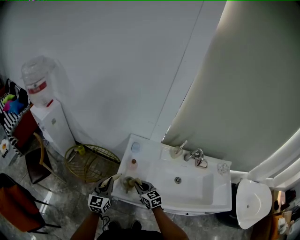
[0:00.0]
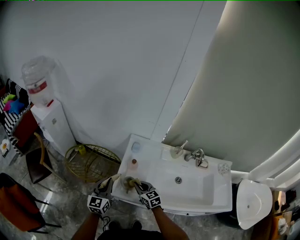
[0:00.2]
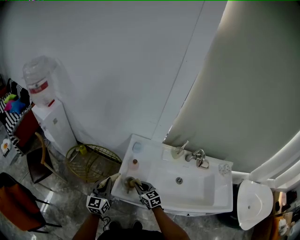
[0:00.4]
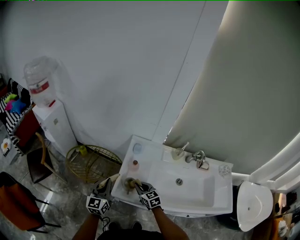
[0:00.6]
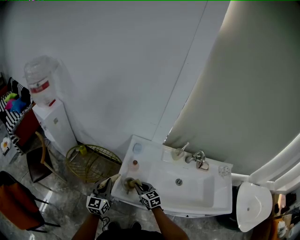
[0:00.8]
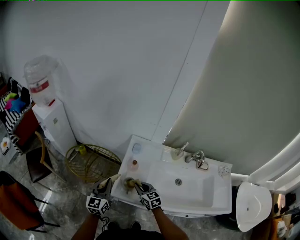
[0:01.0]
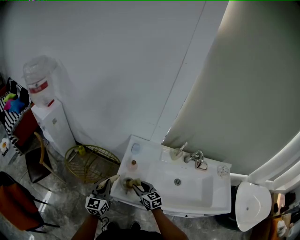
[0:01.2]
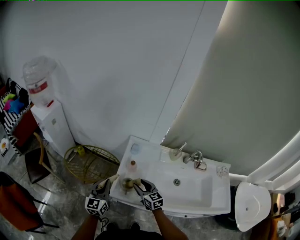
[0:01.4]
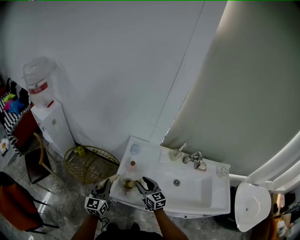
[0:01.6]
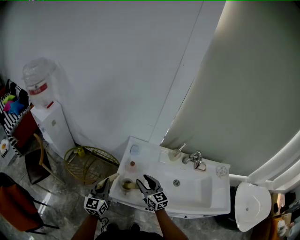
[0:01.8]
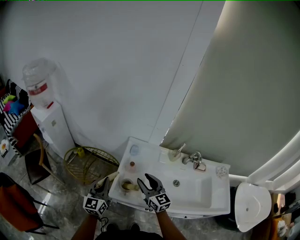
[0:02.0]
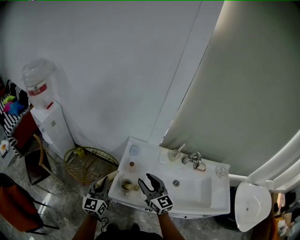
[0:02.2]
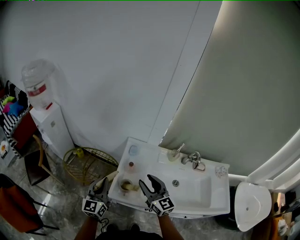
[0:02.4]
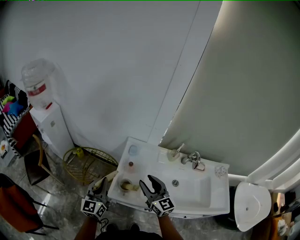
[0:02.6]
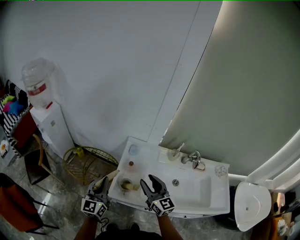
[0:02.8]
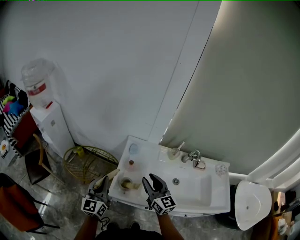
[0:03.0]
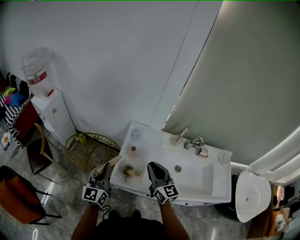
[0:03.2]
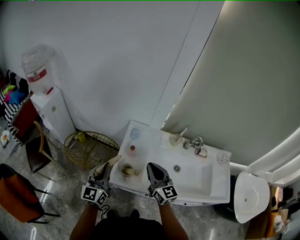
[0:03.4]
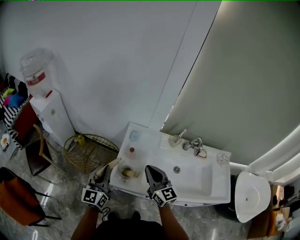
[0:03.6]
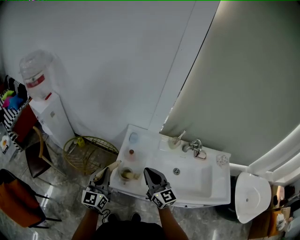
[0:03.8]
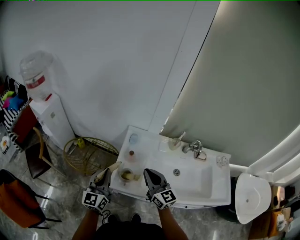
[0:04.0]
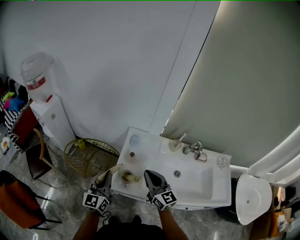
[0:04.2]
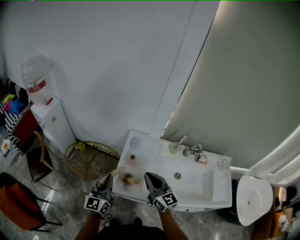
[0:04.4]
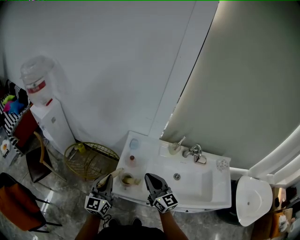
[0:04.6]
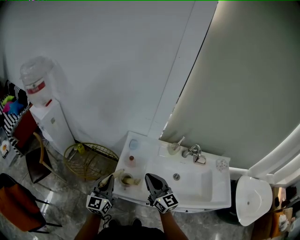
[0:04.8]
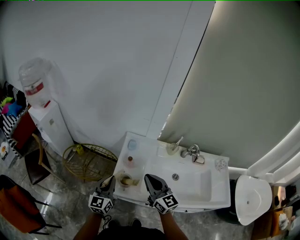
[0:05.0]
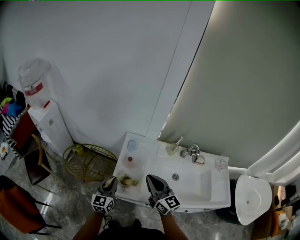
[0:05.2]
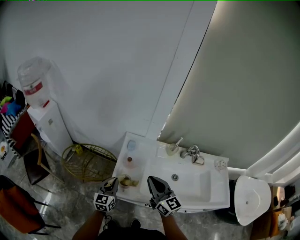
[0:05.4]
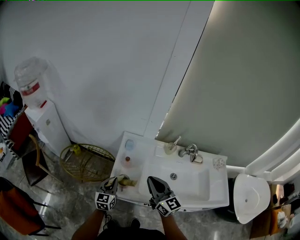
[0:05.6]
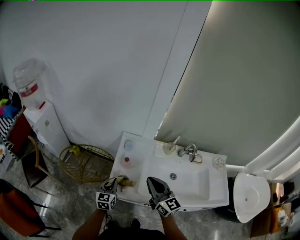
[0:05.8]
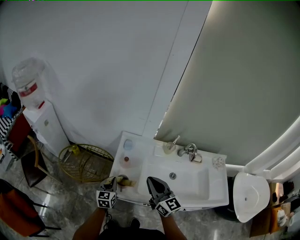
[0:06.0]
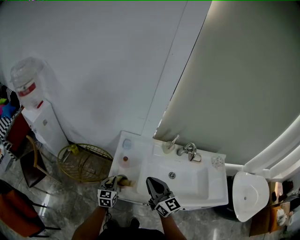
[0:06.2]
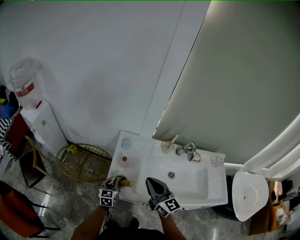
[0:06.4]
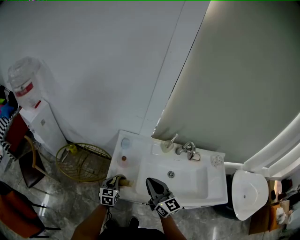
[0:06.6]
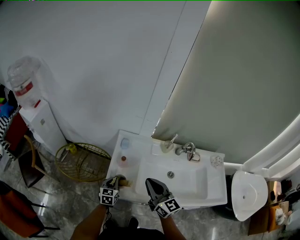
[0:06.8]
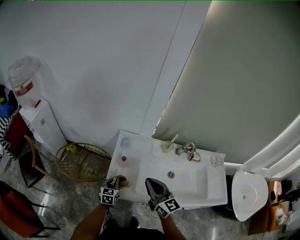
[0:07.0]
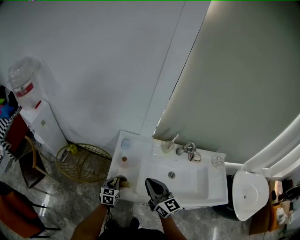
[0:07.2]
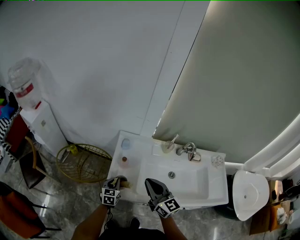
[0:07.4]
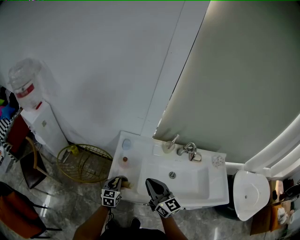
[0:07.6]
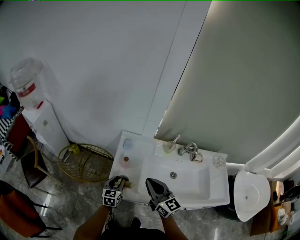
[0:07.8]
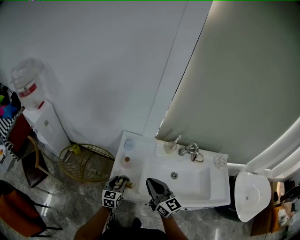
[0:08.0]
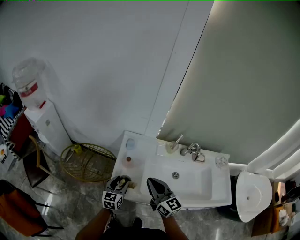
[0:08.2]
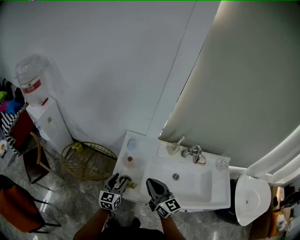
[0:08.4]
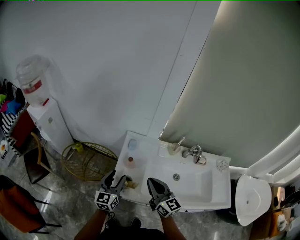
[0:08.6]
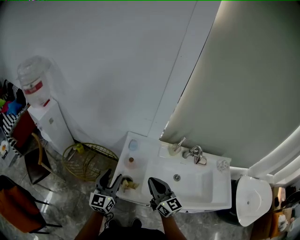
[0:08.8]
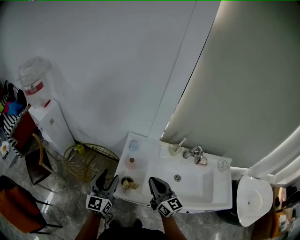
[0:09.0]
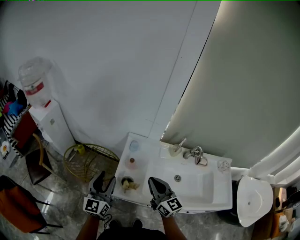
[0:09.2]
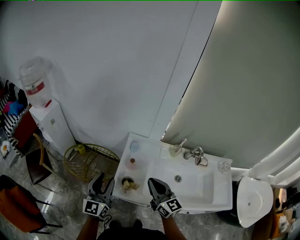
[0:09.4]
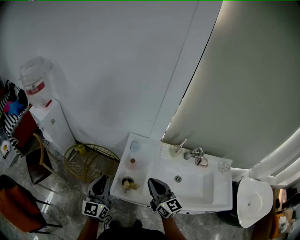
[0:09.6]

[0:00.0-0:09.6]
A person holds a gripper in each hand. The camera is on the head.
0:00.0 to 0:01.6: The right gripper heads upward, covering some 5 cm, and opens its fingers.
0:01.6 to 0:03.2: The left gripper shifts approximately 5 cm upward, while the right gripper moves upward, some 15 cm, and closes up.
0:03.2 to 0:04.8: There are only small adjustments of the grippers.
0:04.8 to 0:06.4: The left gripper shifts approximately 20 cm downward, and swivels some 30 degrees.
0:06.4 to 0:08.0: The left gripper opens its fingers.
0:08.0 to 0:09.6: The left gripper shifts some 20 cm upward and to the left, changes its angle by roughly 30 degrees, and closes up.

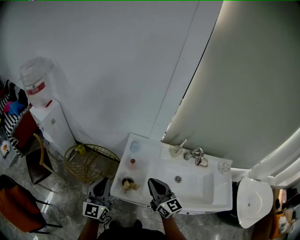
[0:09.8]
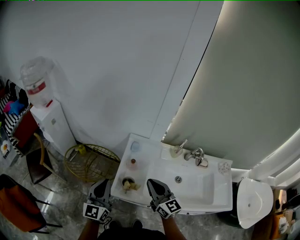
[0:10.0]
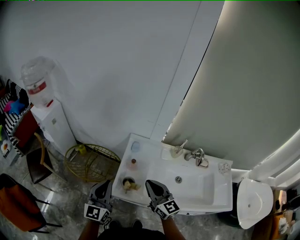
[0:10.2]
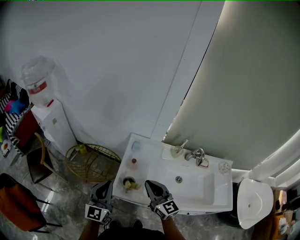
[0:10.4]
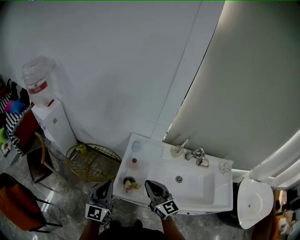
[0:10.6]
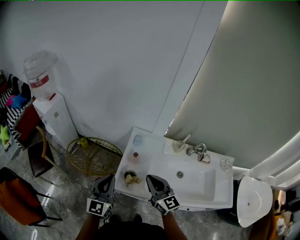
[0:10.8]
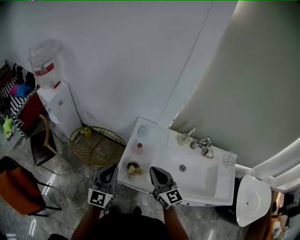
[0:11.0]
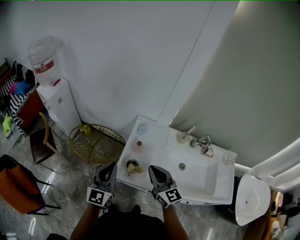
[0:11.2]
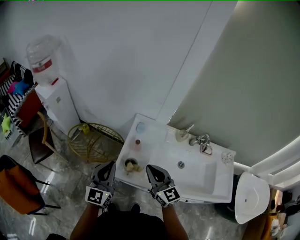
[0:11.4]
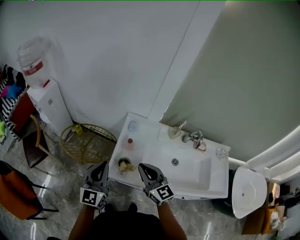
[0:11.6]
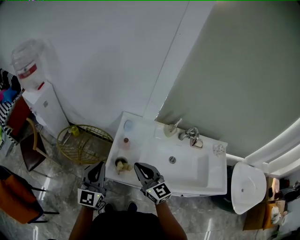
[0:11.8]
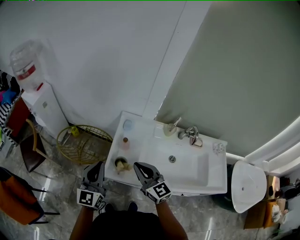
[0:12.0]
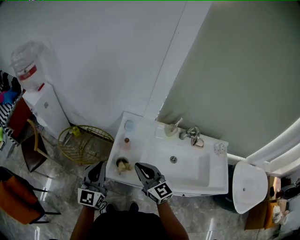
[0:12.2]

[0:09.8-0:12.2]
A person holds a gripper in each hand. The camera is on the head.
0:09.8 to 0:12.2: The grippers make only small movements.

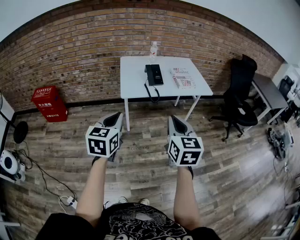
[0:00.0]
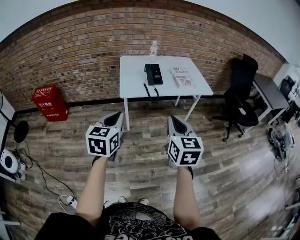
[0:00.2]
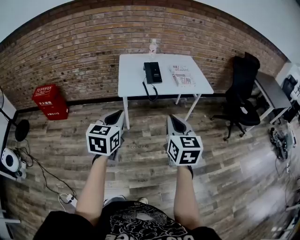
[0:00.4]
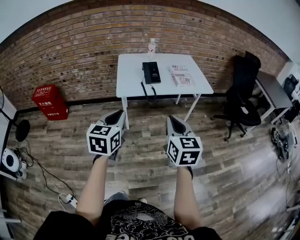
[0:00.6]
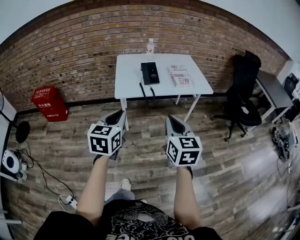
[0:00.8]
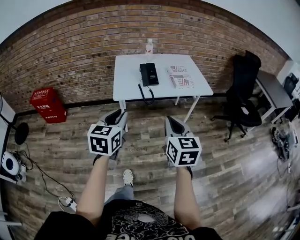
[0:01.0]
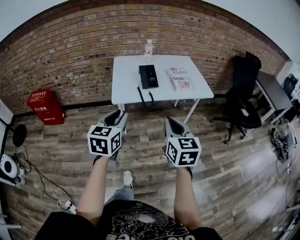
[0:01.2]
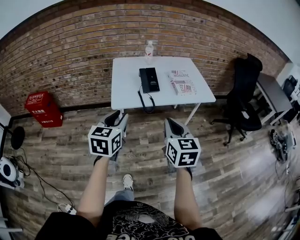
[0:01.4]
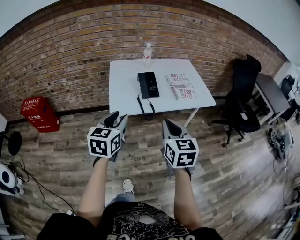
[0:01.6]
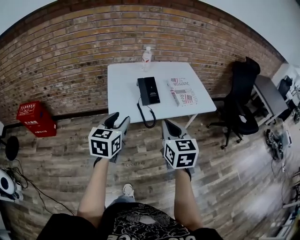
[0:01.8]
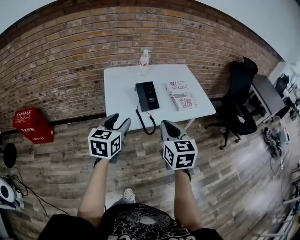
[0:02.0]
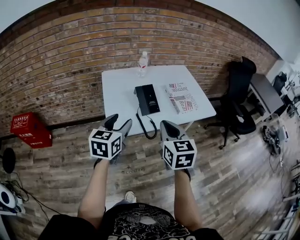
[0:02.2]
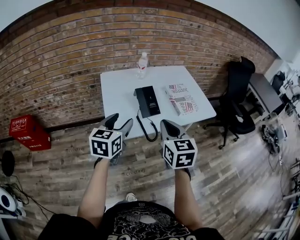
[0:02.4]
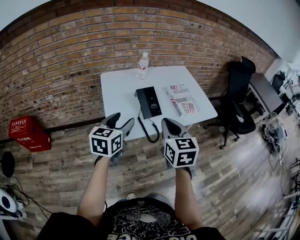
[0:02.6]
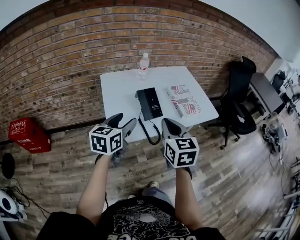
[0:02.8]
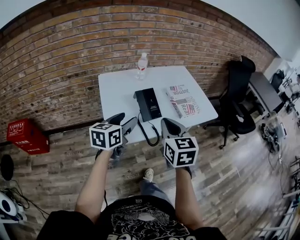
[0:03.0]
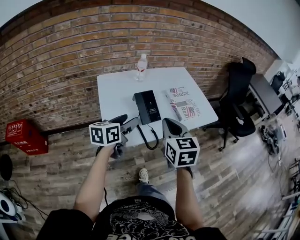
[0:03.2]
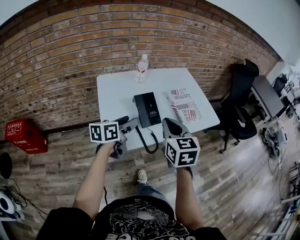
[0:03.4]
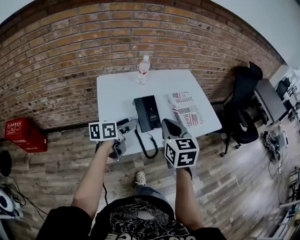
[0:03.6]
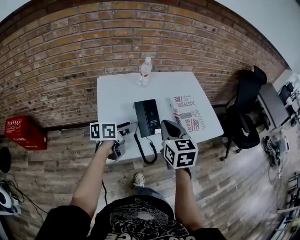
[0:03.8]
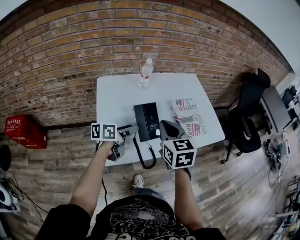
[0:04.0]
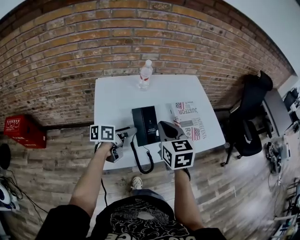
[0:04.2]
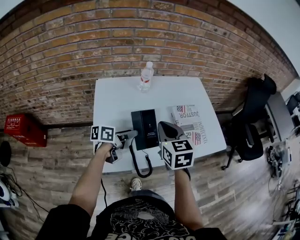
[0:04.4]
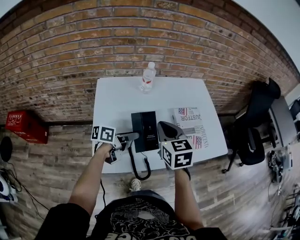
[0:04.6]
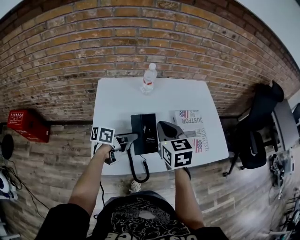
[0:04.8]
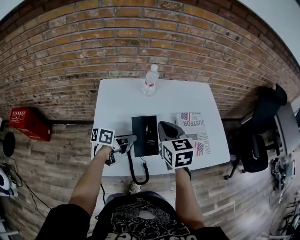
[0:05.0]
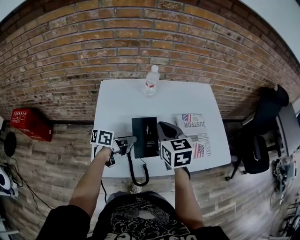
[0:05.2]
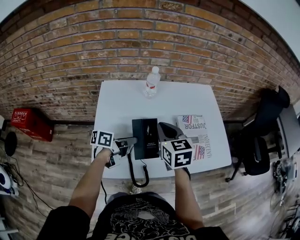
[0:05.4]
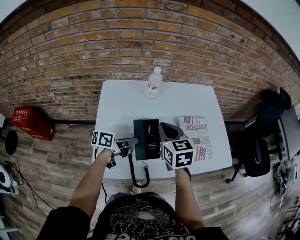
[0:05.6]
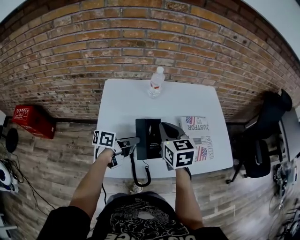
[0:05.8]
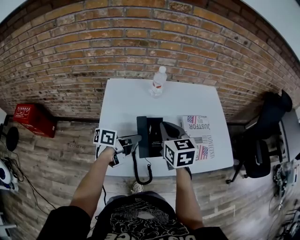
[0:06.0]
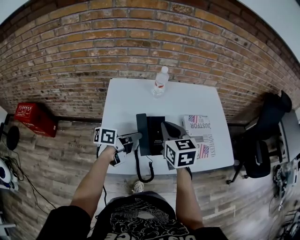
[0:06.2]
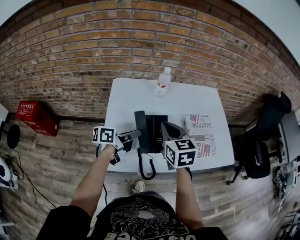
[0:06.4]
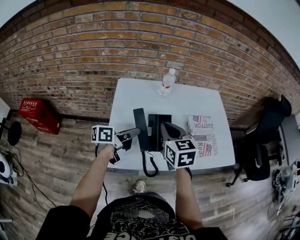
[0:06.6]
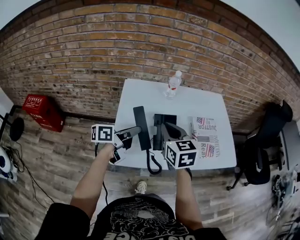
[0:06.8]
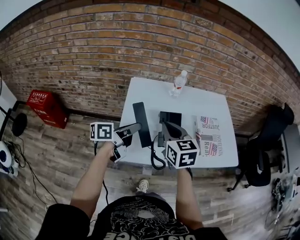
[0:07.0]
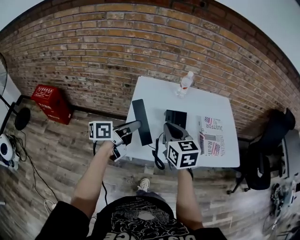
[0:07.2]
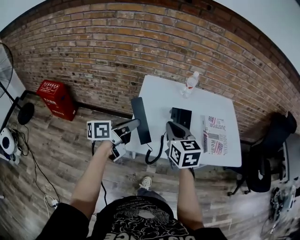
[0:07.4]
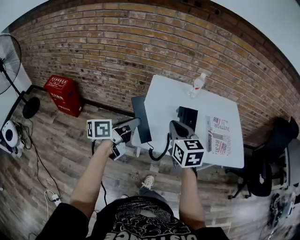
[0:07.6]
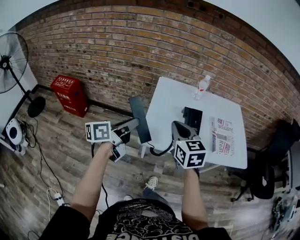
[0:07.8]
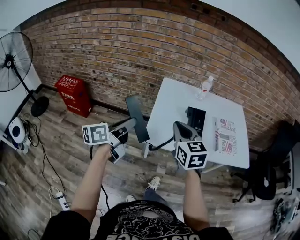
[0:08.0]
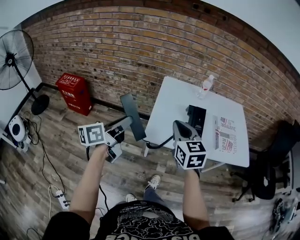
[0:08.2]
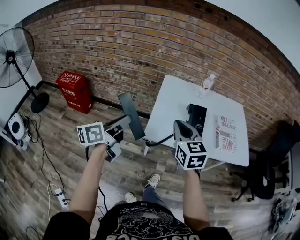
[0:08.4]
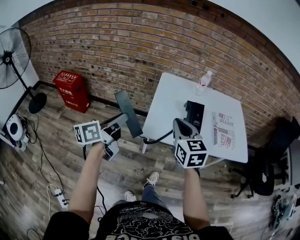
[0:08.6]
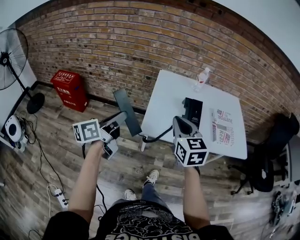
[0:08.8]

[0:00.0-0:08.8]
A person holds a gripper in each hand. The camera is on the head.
0:00.0 to 0:01.4: The left gripper heads forward and to the right, covering some 15 cm, and opens up, while the right gripper moves forward, roughly 15 cm.
0:01.4 to 0:03.0: The right gripper moves forward and to the left, approximately 25 cm. The left gripper travels forward by roughly 25 cm, swivels roughly 30 degrees, and opens up.
0:03.0 to 0:04.4: The right gripper goes about 20 cm forward; the left gripper travels forward and downward by some 20 cm, and swivels some 40 degrees.
0:04.4 to 0:05.8: The left gripper closes its fingers, while the right gripper heads forward, covering approximately 5 cm.
0:05.8 to 0:07.4: The left gripper travels backward, upward and to the left by roughly 25 cm, and changes its angle by approximately 30 degrees. The right gripper travels backward and to the left by roughly 20 cm.
0:07.4 to 0:08.8: The right gripper is displaced backward by some 10 cm. The left gripper shifts roughly 15 cm backward and to the left.

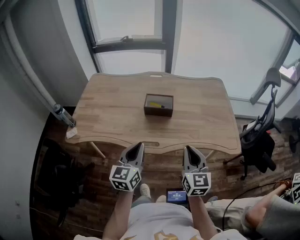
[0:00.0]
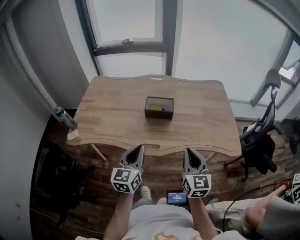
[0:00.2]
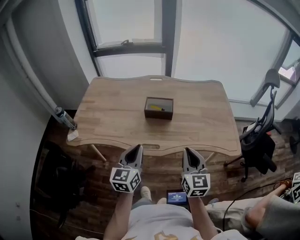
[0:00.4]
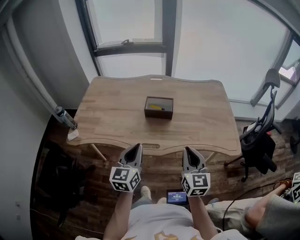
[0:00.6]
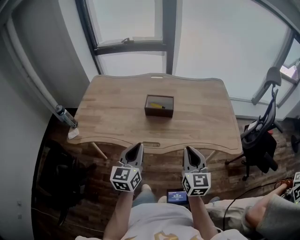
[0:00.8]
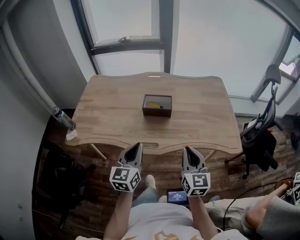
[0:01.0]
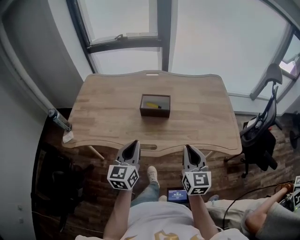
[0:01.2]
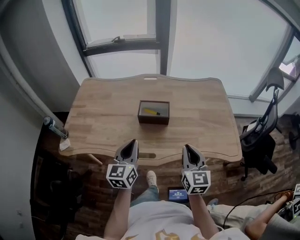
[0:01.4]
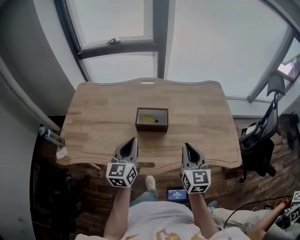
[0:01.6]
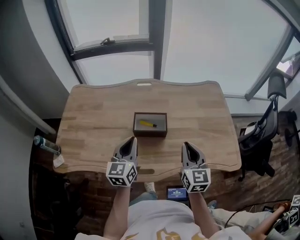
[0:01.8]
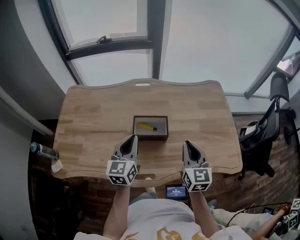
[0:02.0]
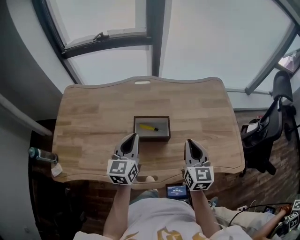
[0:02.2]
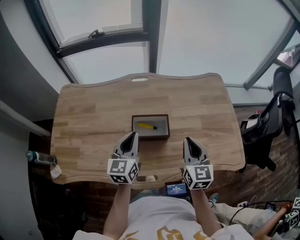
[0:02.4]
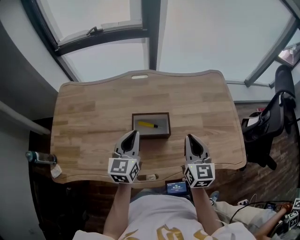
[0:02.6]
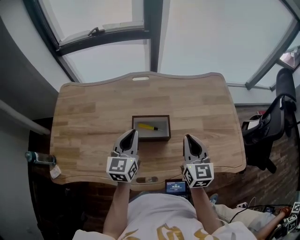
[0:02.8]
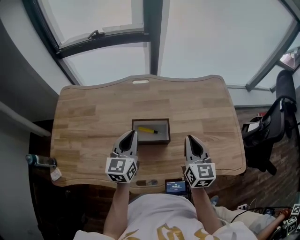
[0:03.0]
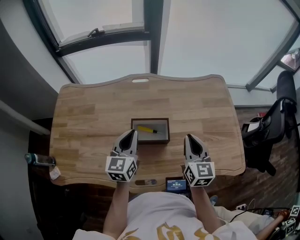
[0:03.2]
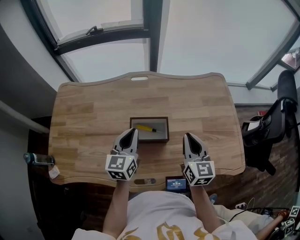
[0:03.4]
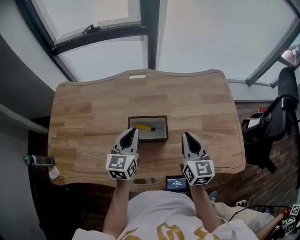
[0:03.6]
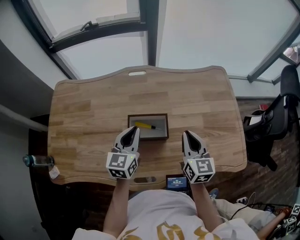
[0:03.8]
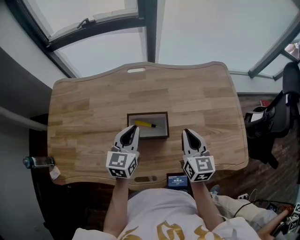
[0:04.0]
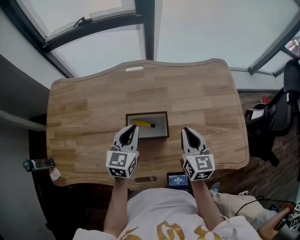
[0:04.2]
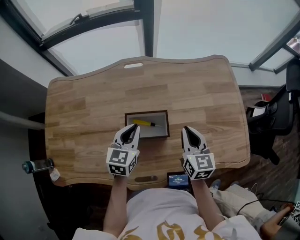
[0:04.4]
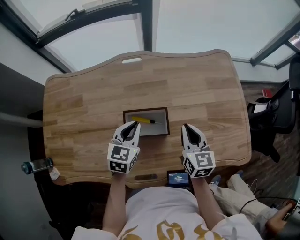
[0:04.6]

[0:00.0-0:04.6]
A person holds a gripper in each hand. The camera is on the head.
0:00.0 to 0:01.6: Both grippers travel together forward, approximately 15 cm.
0:01.6 to 0:03.0: The two grippers go about 15 cm forward.
0:03.0 to 0:04.6: Both grippers travel together downward and forward, approximately 10 cm. The left gripper swivels some 20 degrees.
